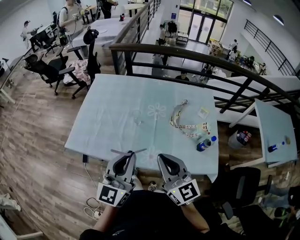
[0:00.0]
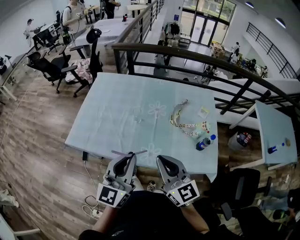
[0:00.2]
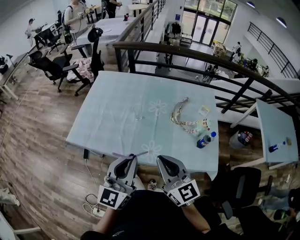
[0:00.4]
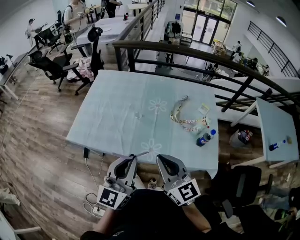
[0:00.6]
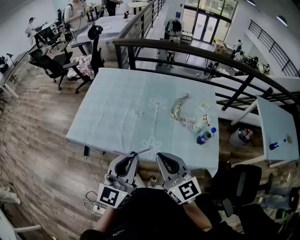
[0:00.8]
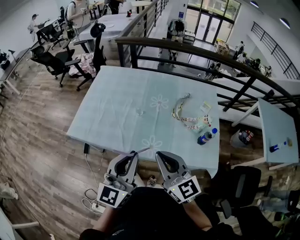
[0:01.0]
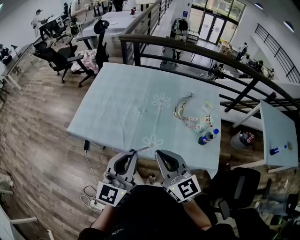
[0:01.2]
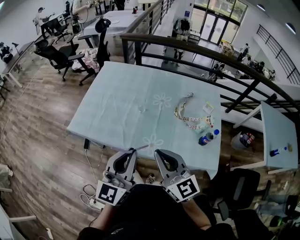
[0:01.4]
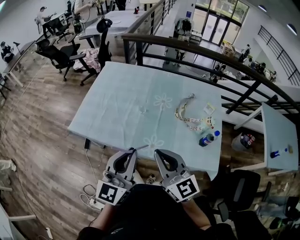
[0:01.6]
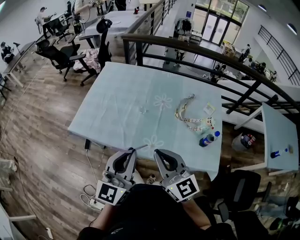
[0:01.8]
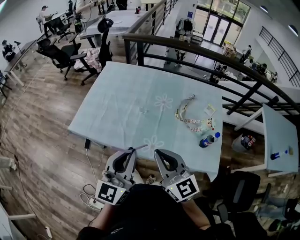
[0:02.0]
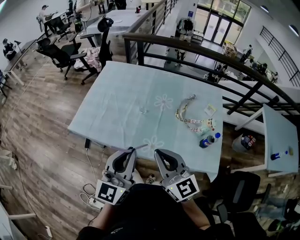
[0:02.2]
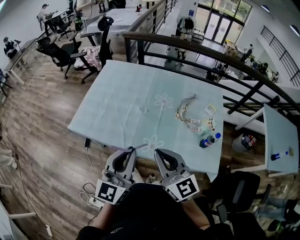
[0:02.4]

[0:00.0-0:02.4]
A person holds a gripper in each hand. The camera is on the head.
0:00.0 to 0:01.2: The left gripper goes about 5 cm backward.
0:01.2 to 0:02.4: The grippers move only a little.

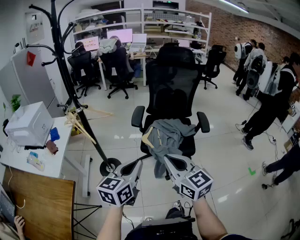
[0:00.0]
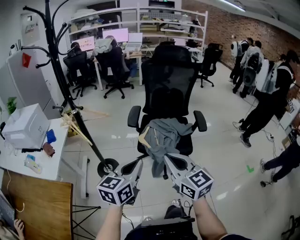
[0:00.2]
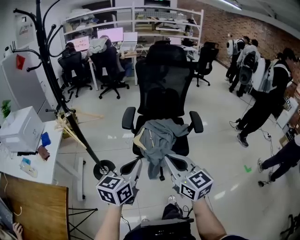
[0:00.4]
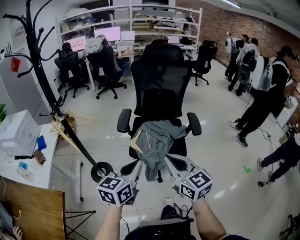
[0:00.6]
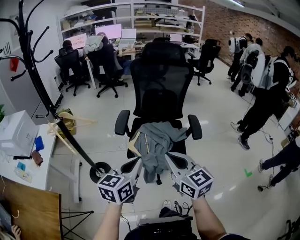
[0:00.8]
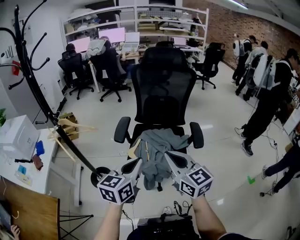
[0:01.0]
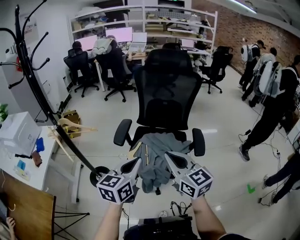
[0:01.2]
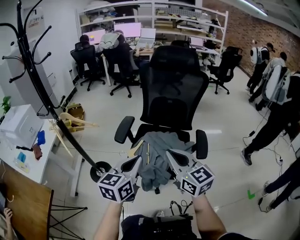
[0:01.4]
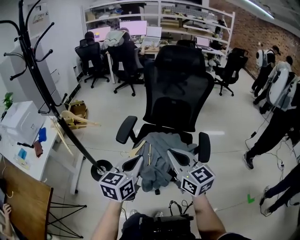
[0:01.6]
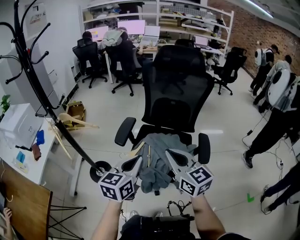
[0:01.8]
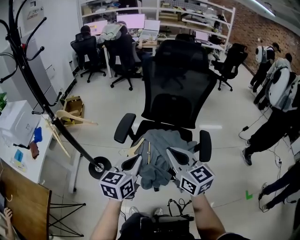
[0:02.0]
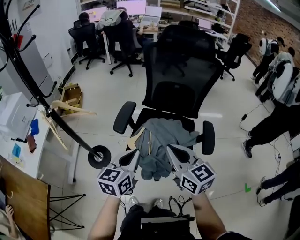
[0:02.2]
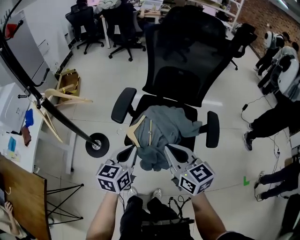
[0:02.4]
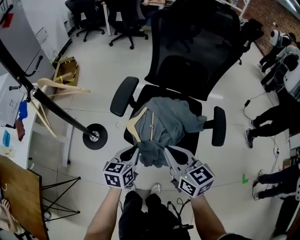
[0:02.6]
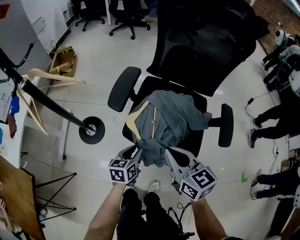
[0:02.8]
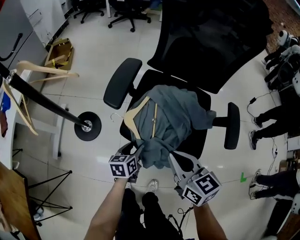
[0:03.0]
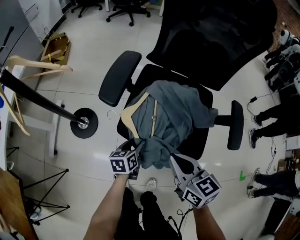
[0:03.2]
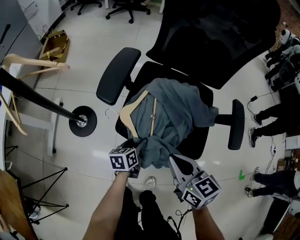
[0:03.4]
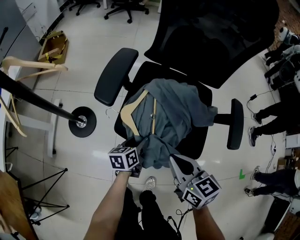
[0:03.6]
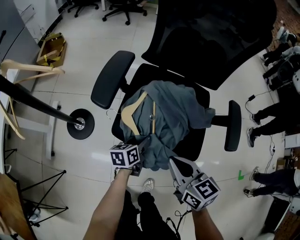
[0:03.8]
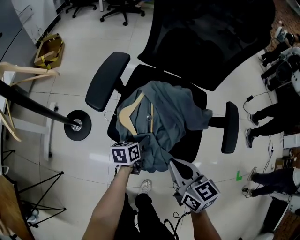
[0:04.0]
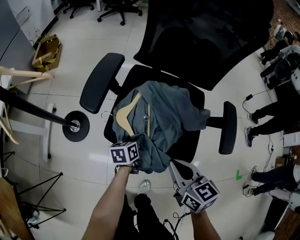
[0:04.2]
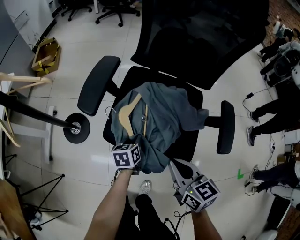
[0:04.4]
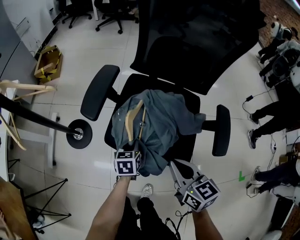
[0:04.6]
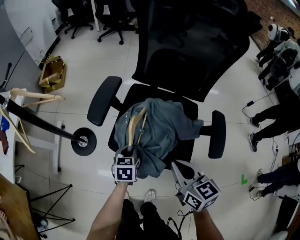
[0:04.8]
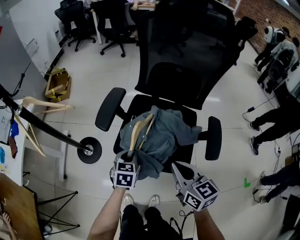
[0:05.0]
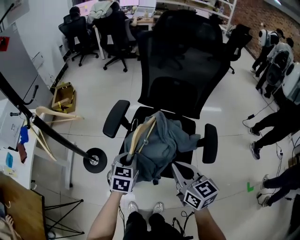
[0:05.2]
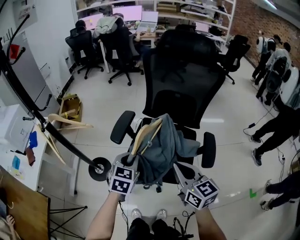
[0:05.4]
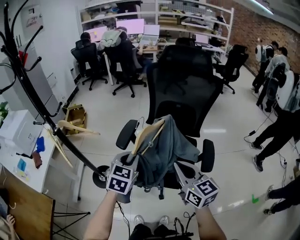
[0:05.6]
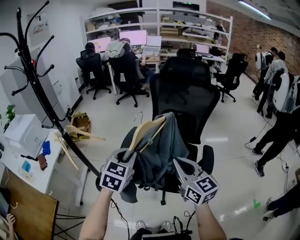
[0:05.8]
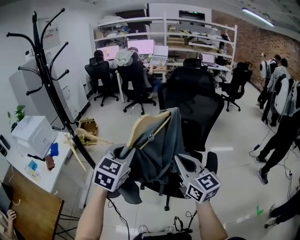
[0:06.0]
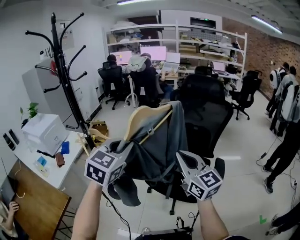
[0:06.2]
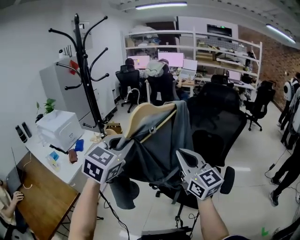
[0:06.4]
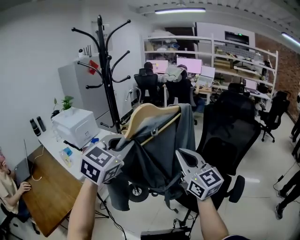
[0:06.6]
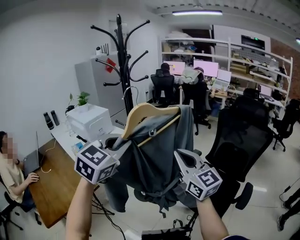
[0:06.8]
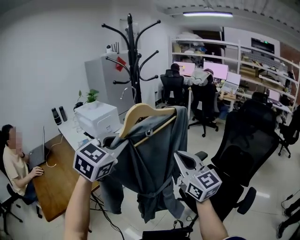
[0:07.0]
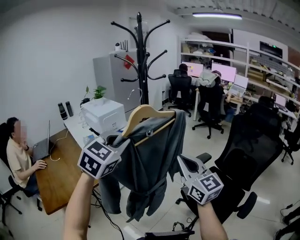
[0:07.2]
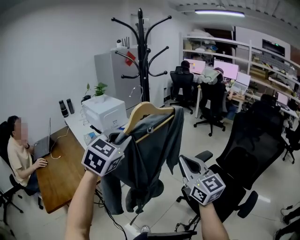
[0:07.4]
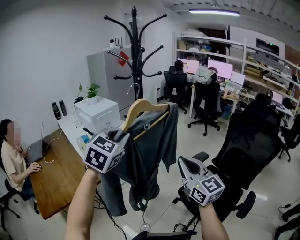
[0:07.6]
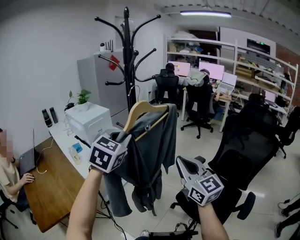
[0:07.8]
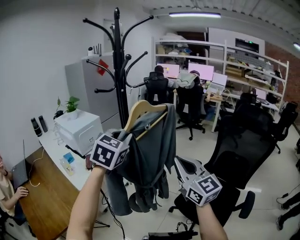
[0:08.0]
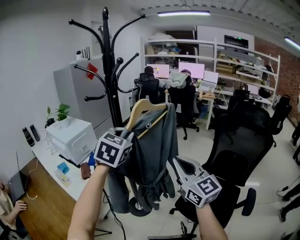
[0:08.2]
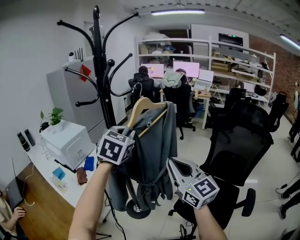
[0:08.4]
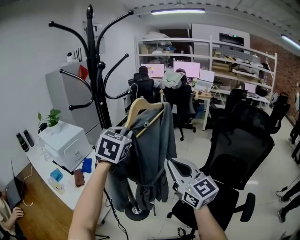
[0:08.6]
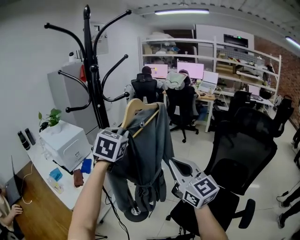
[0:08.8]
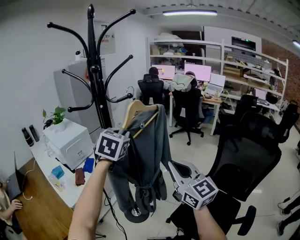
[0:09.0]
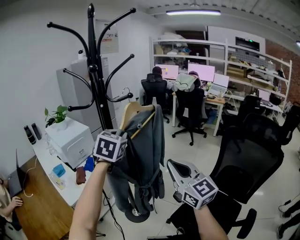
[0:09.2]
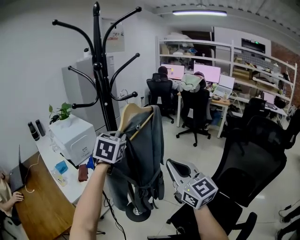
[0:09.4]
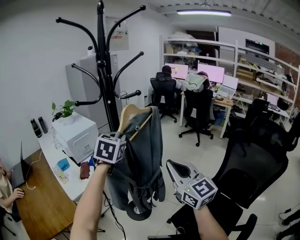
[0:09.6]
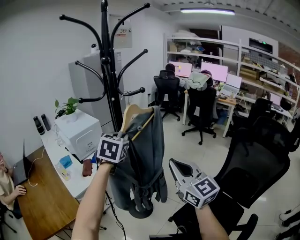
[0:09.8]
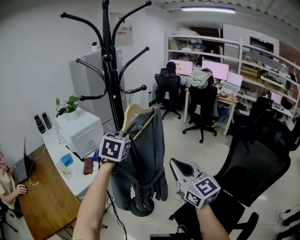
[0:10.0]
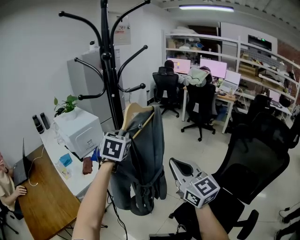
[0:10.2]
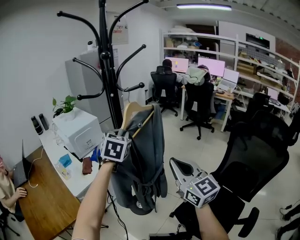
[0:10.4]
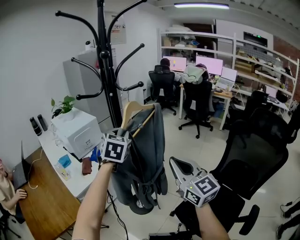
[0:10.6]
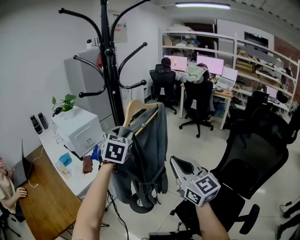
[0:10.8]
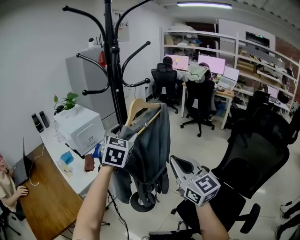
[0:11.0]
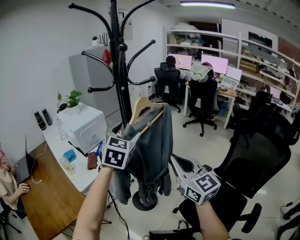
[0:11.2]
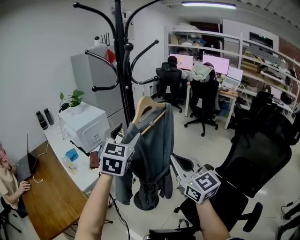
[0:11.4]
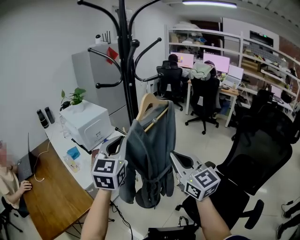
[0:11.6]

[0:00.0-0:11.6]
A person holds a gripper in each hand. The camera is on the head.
0:00.0 to 0:01.4: Both grippers travel together forward and to the right, approximately 25 cm.
0:01.4 to 0:02.8: The left gripper shifts roughly 35 cm downward, changes its angle by roughly 30 degrees, and opens up. The right gripper heads downward, covering some 20 cm, and swivels about 20 degrees.
0:02.8 to 0:04.4: The right gripper goes approximately 10 cm downward and to the right; the left gripper travels forward, downward and to the right by about 15 cm.
0:04.4 to 0:05.8: The left gripper shifts some 50 cm upward, and rotates around the line of its fingers by roughly 50 degrees, clockwise from behind. The right gripper moves upward, roughly 30 cm, and turns by approximately 30 degrees.
0:05.8 to 0:07.2: The left gripper shifts by approximately 40 cm, and changes its angle by roughly 30 degrees; the right gripper changes place by about 30 cm, and changes its angle by some 40 degrees.
0:07.2 to 0:08.8: The left gripper moves forward, roughly 30 cm; the right gripper moves forward, roughly 20 cm.
0:08.8 to 0:10.2: The left gripper travels to the left and downward by some 10 cm.
0:10.2 to 0:11.6: The right gripper goes about 5 cm to the left. Meanwhile the left gripper travels backward and to the left by some 15 cm, turns by approximately 20 degrees, and opens, then closes again.

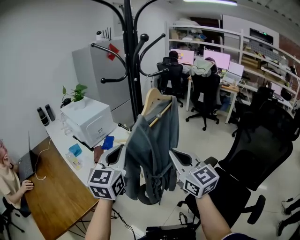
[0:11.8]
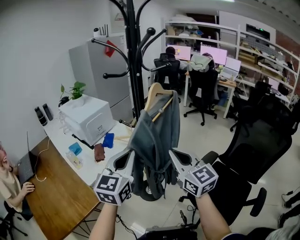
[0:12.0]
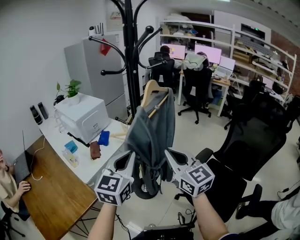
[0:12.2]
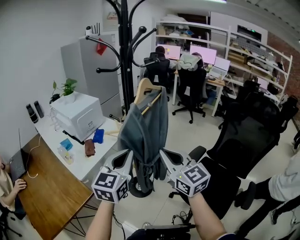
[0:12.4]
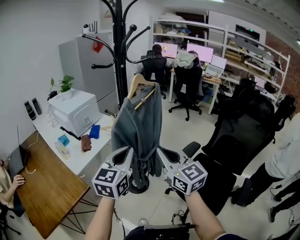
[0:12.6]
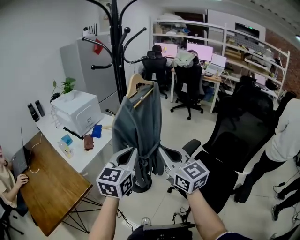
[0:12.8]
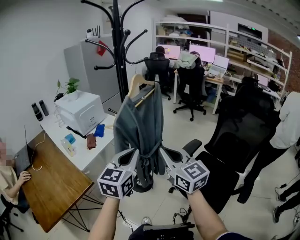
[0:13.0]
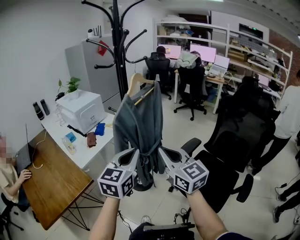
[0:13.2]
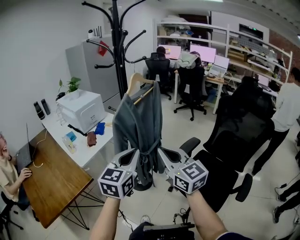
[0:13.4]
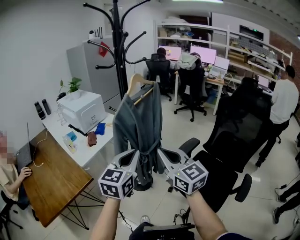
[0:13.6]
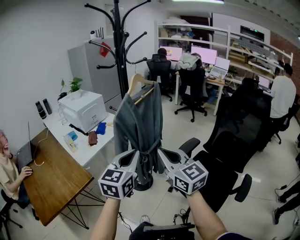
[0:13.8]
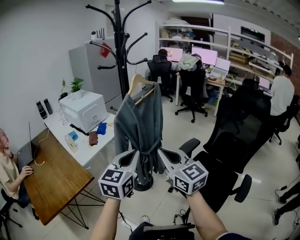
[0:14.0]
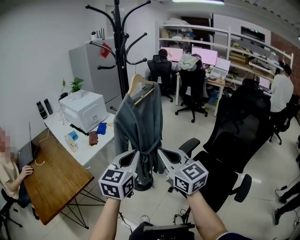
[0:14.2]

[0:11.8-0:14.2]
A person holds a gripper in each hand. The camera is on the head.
0:11.8 to 0:13.0: The left gripper travels backward and to the right by about 15 cm; the right gripper travels backward by some 10 cm.
0:13.0 to 0:14.2: The grippers move only a little.

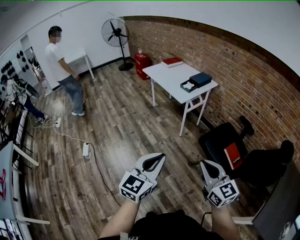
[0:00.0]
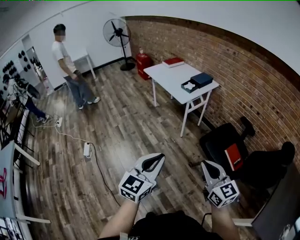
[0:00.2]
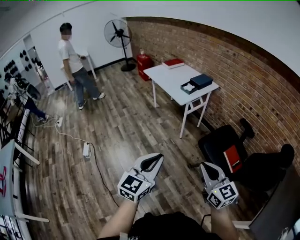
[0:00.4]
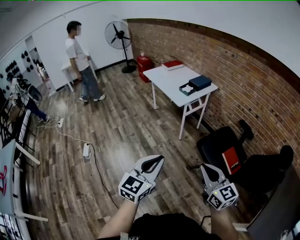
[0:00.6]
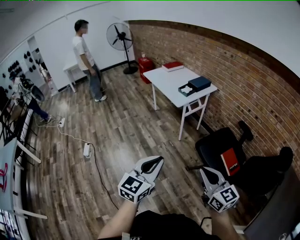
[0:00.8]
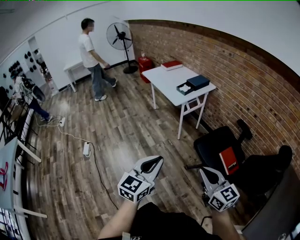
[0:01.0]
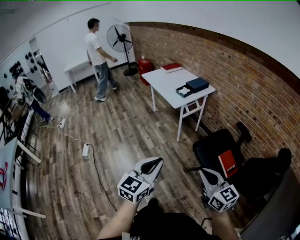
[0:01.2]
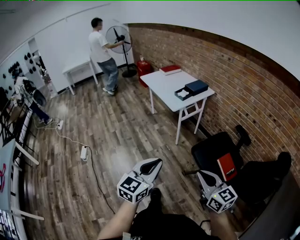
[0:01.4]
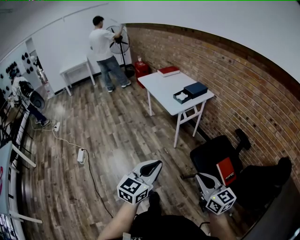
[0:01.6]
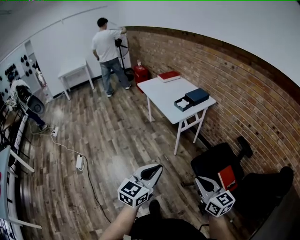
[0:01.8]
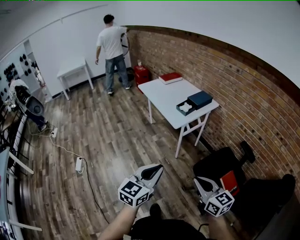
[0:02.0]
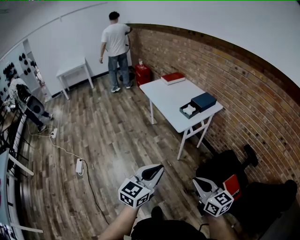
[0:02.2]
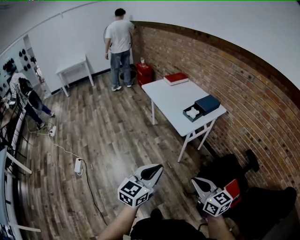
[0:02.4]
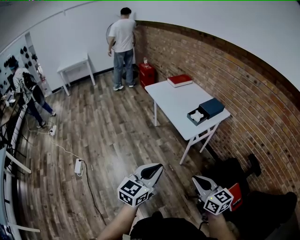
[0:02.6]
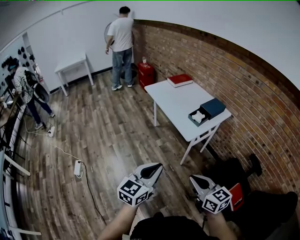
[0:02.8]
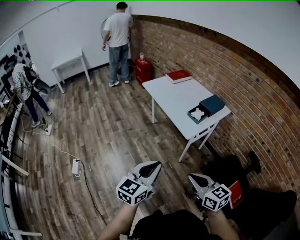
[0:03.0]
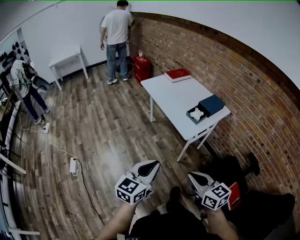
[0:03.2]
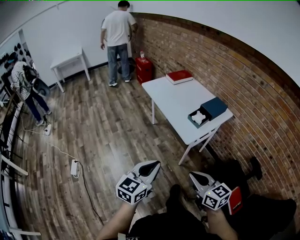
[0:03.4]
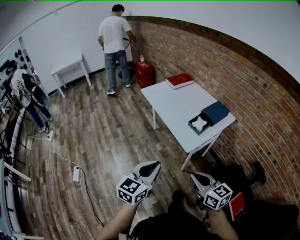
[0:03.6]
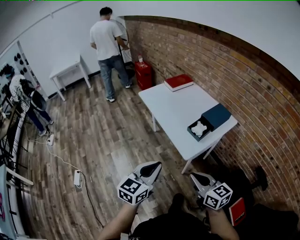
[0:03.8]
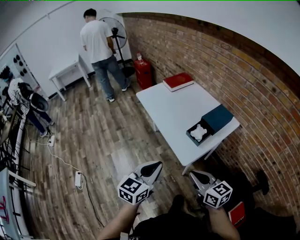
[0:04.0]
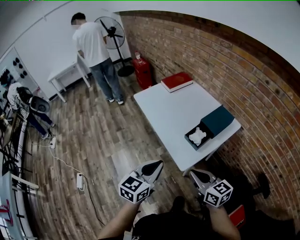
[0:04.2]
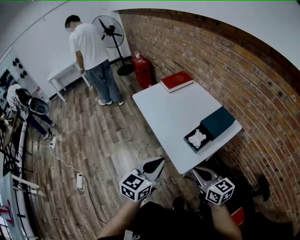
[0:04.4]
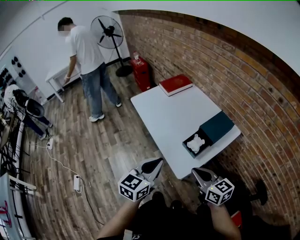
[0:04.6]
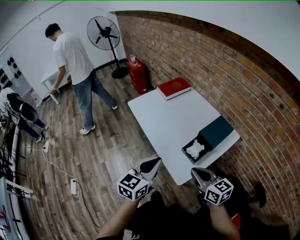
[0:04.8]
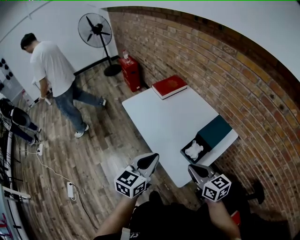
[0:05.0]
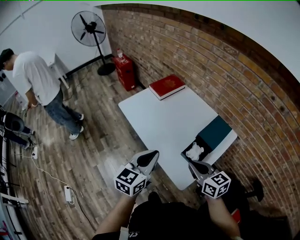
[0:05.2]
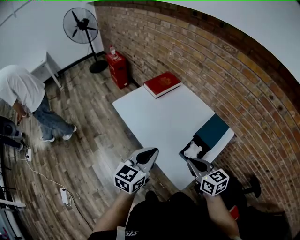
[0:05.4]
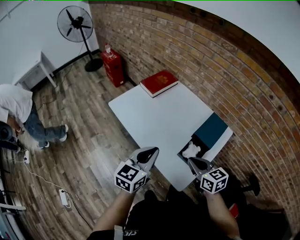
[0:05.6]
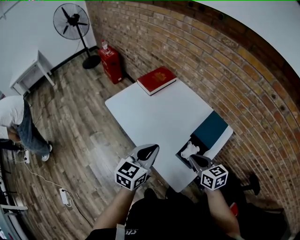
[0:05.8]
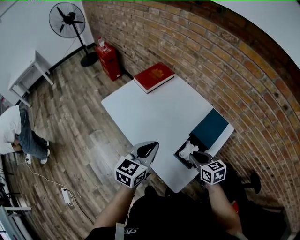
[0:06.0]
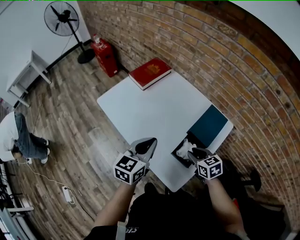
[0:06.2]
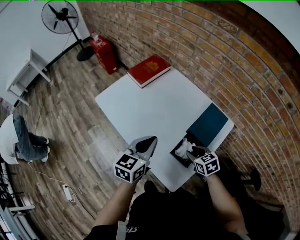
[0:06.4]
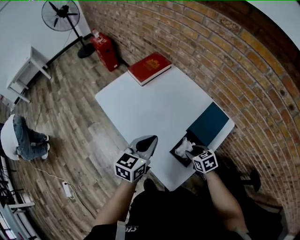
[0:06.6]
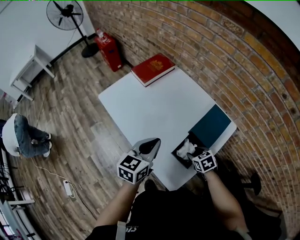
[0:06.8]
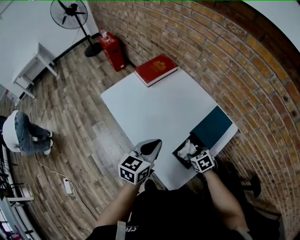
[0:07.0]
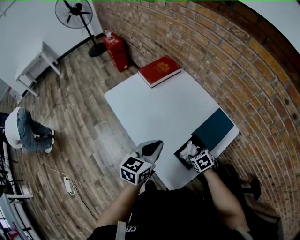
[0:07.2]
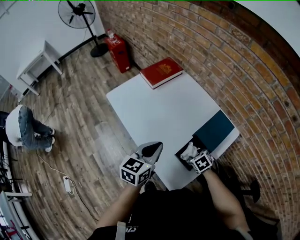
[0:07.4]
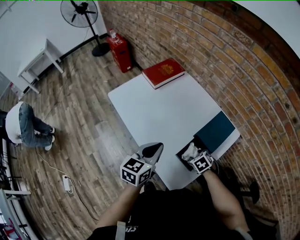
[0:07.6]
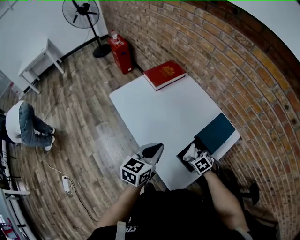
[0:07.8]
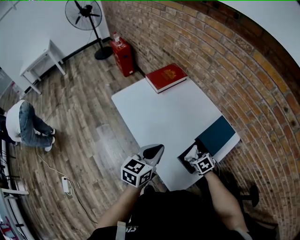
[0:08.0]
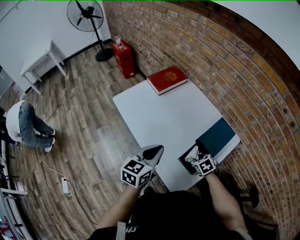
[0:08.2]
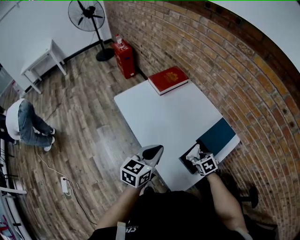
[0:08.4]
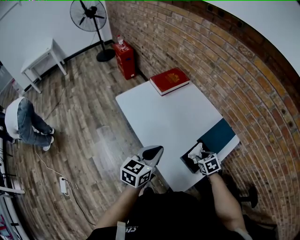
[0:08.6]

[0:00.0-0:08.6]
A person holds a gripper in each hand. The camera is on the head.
0:00.0 to 0:01.4: Both grippers travel together to the right, about 10 cm.
0:01.4 to 0:02.8: The two grippers go approximately 35 cm forward and to the left.
0:02.8 to 0:04.4: Both grippers travel together forward, approximately 35 cm.
0:04.4 to 0:05.8: The two grippers go about 20 cm forward. The right gripper swivels about 20 degrees.
0:05.8 to 0:07.2: The left gripper moves about 10 cm; the right gripper heads downward, covering approximately 20 cm, tips its fingers downward by roughly 40 degrees, and opens.
0:07.2 to 0:08.6: The right gripper ends up approximately 5 cm from where it was, and closes. Meanwhile the left gripper travels to the left by roughly 5 cm.
